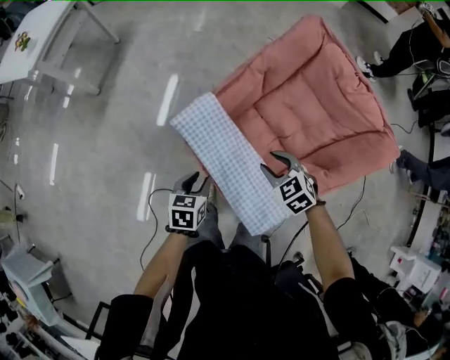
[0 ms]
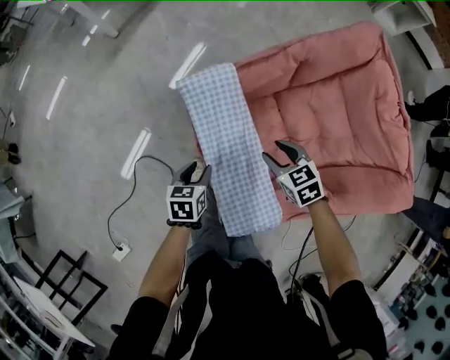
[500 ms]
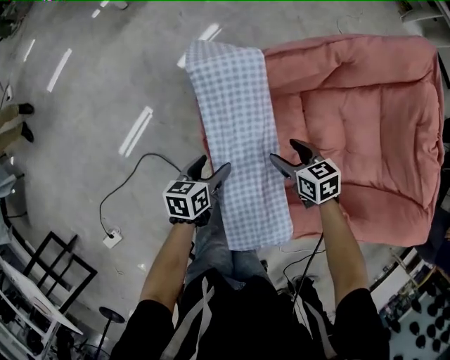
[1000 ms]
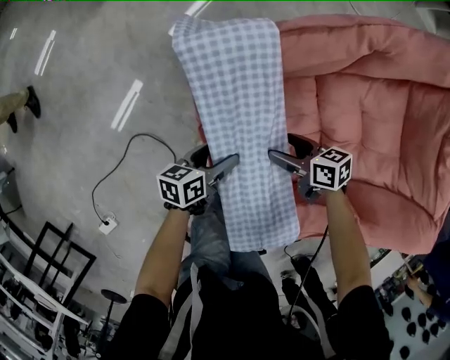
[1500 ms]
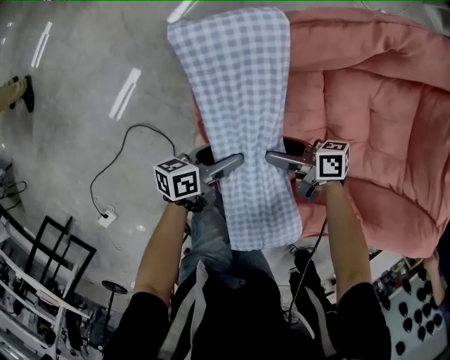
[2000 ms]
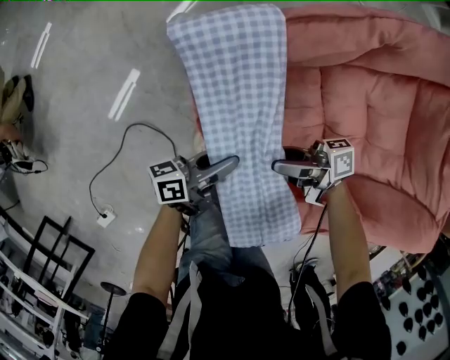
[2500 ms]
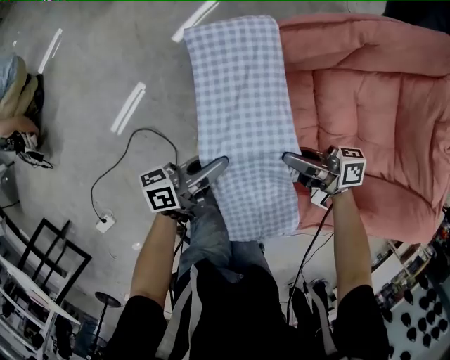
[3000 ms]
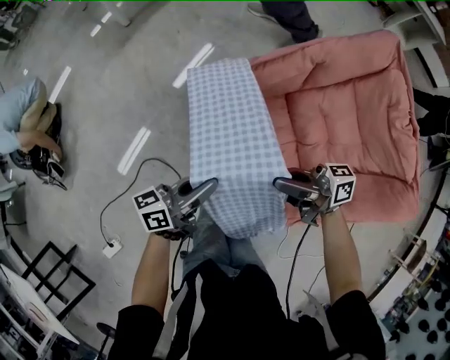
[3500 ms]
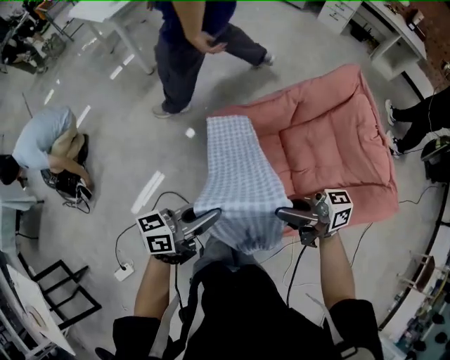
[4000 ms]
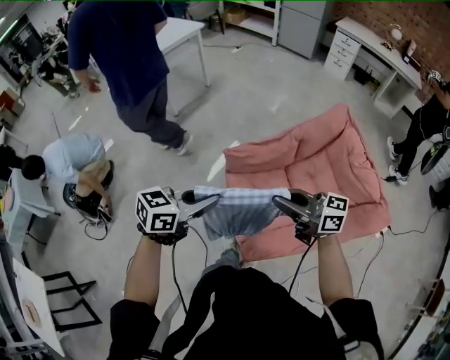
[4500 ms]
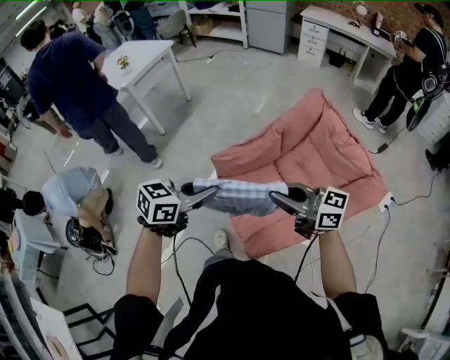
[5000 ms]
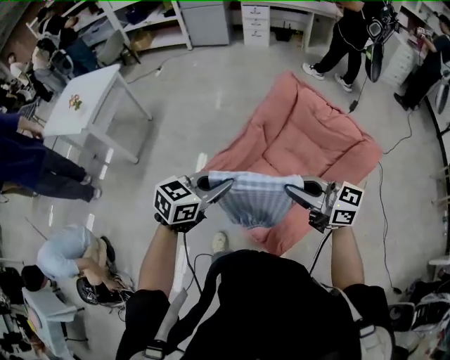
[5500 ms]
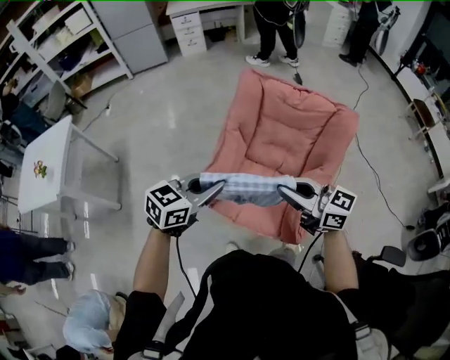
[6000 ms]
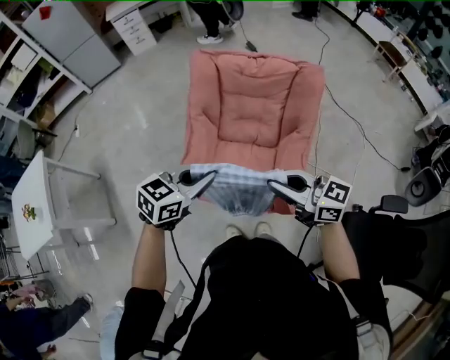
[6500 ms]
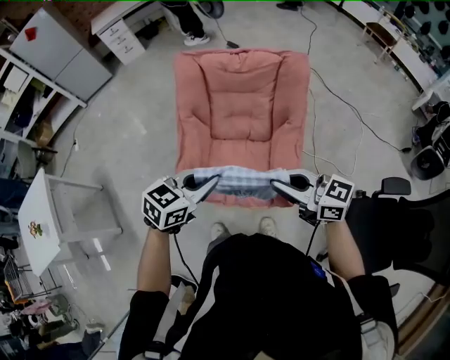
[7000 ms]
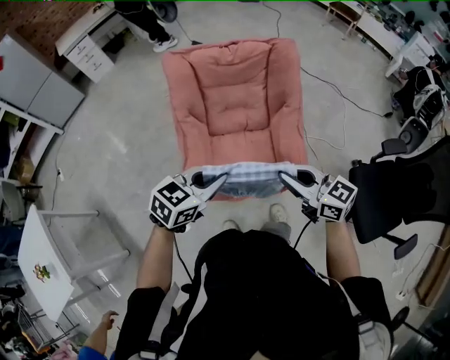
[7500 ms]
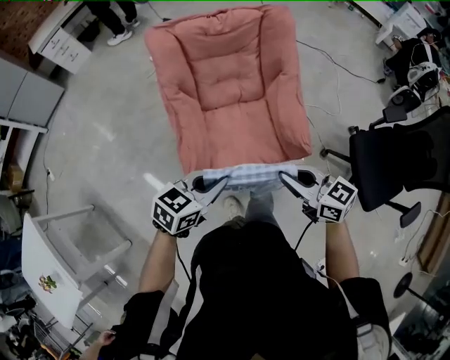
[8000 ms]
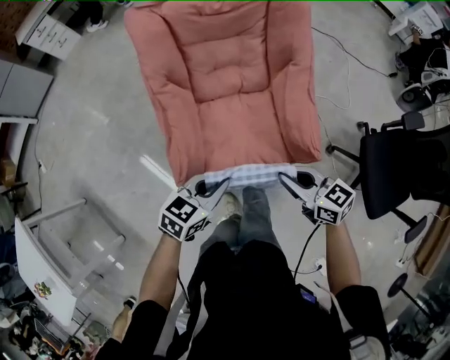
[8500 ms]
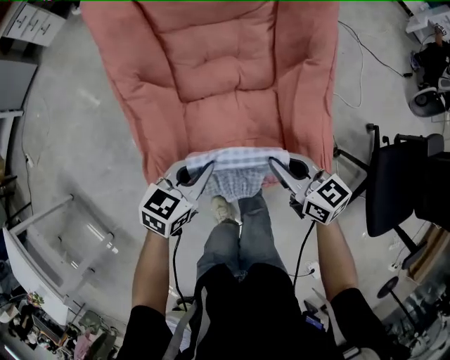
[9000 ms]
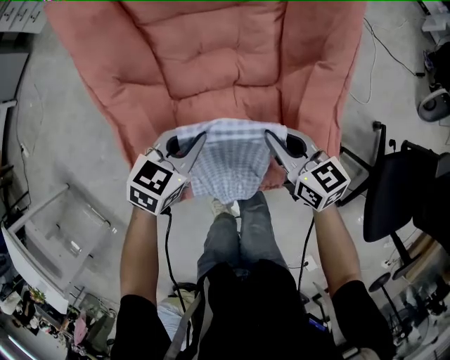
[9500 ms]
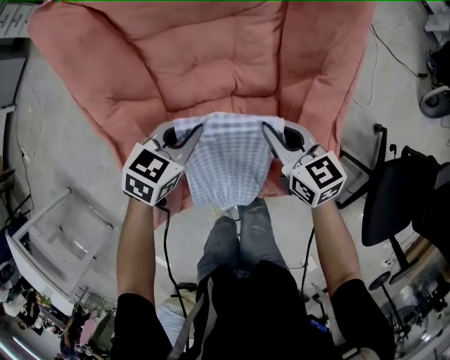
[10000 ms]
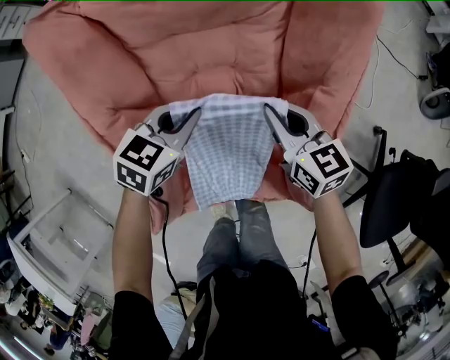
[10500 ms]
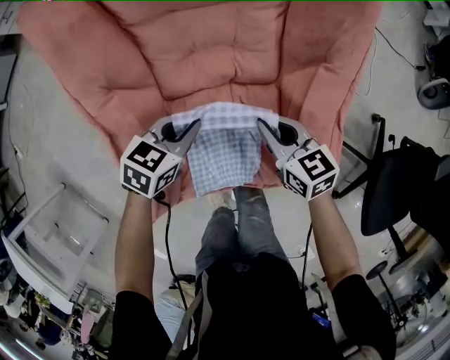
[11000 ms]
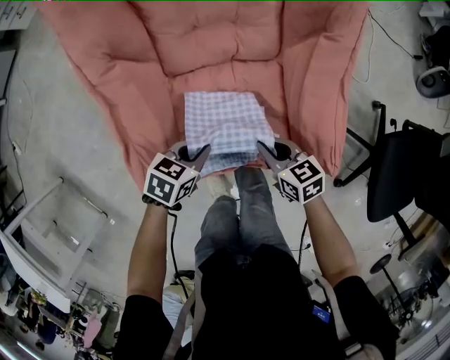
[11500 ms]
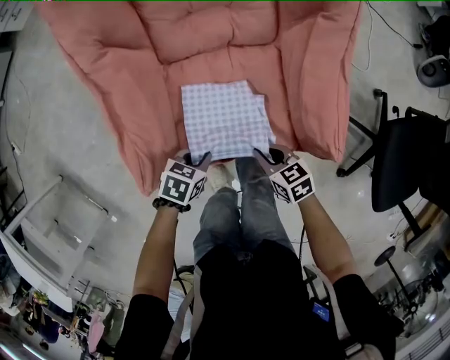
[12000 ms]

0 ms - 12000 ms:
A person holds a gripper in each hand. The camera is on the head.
0 ms - 2000 ms: The two grippers go some 25 cm downward. The right gripper turns by some 70 degrees, and opens up, while the left gripper rolls counterclockwise, seen from behind, by some 50 degrees, and opens up.
2000 ms - 4000 ms: The right gripper swings up and down, roughly 40 cm each way, with 2 reversals, points its fingers about 40 degrees further upward, and closes up; the left gripper swings up and down, approximately 40 cm each way, with 2 reversals, turns by about 30 degrees, and closes.
4000 ms - 6000 ms: The left gripper moves about 20 cm, and rotates about 60 degrees. Meanwhile the right gripper shifts roughly 10 cm upward, and rotates approximately 80 degrees.
6000 ms - 8000 ms: The right gripper moves about 20 cm, and rotates about 40 degrees. The left gripper moves downward, roughly 10 cm, and swivels some 40 degrees.
8000 ms - 10000 ms: Both grippers move forward and downward, roughly 40 cm.
10000 ms - 12000 ms: The left gripper moves roughly 30 cm, and changes its angle by some 30 degrees; the right gripper shifts by some 30 cm, and changes its angle by about 20 degrees.

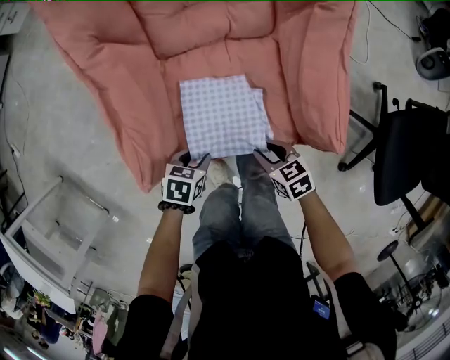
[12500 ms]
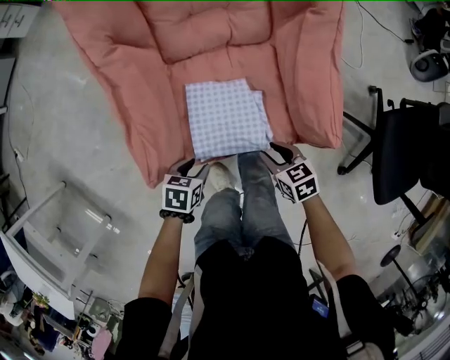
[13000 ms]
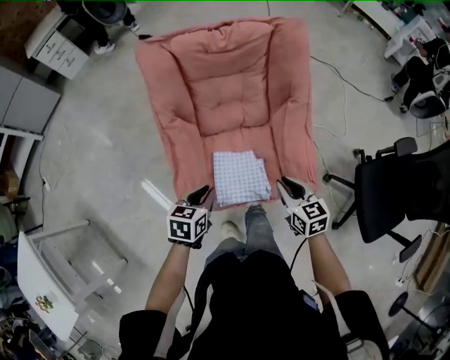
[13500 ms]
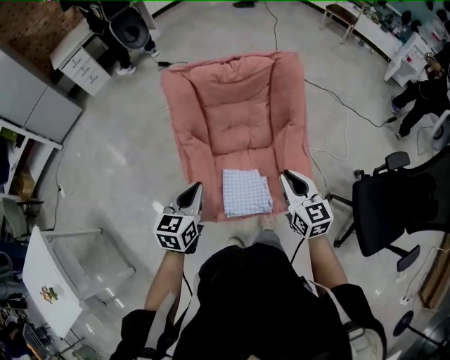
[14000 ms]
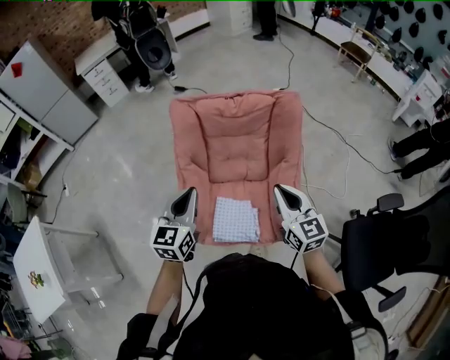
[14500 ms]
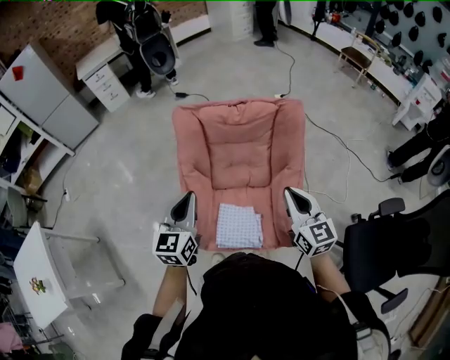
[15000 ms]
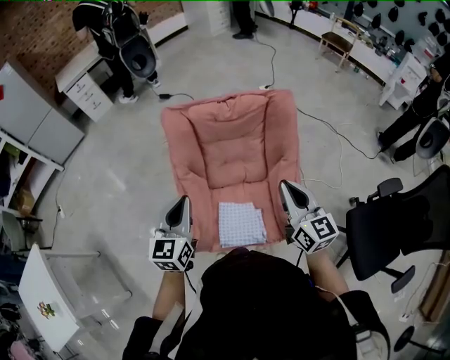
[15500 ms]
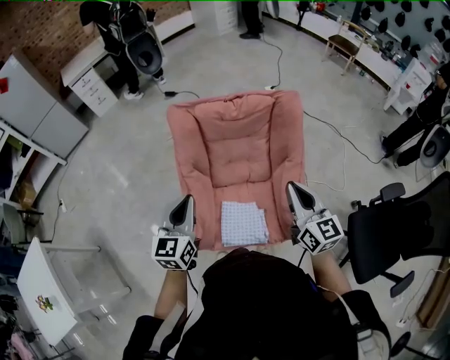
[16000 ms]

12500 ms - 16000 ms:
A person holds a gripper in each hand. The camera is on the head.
12500 ms - 14500 ms: Both grippers move upward, about 50 cm. The right gripper angles its fingers upward, by some 40 degrees; the left gripper tilts its fingers about 50 degrees upward, and closes.
14500 ms - 16000 ms: The left gripper shifts roughly 5 cm to the left.

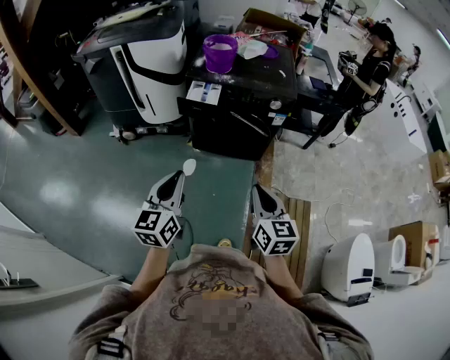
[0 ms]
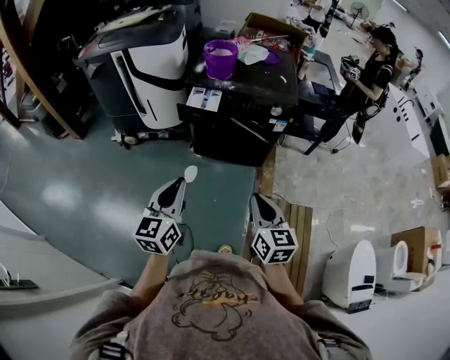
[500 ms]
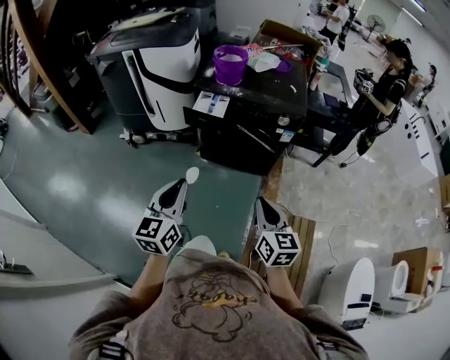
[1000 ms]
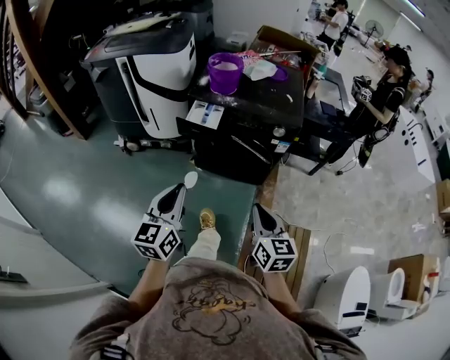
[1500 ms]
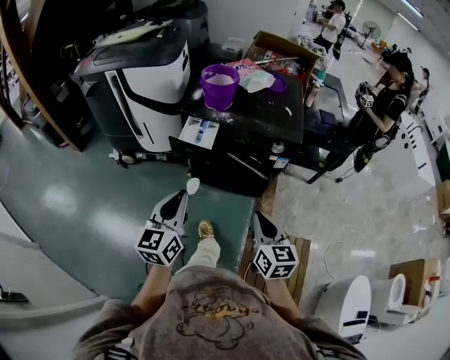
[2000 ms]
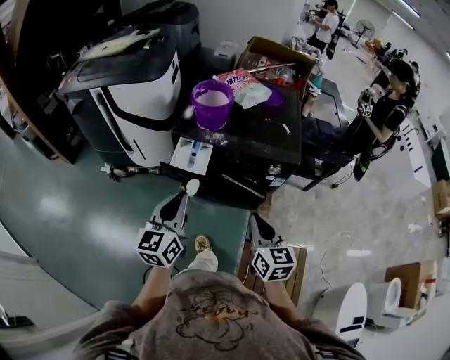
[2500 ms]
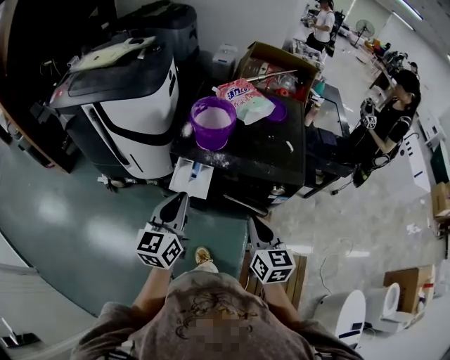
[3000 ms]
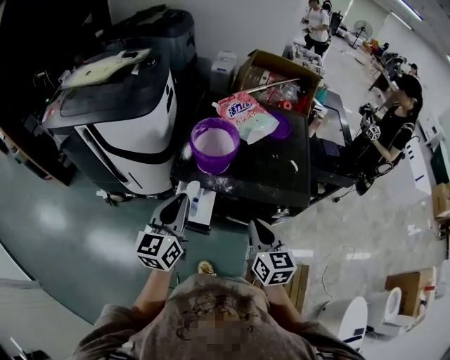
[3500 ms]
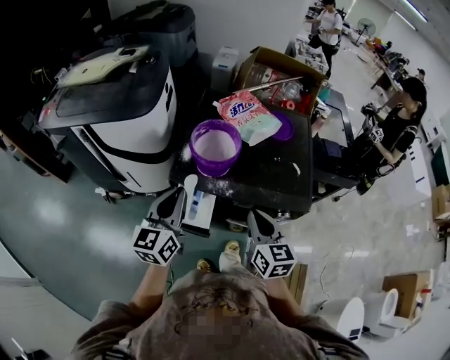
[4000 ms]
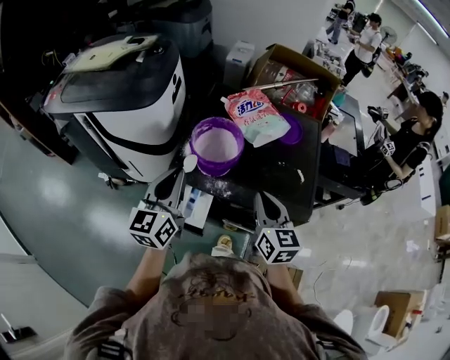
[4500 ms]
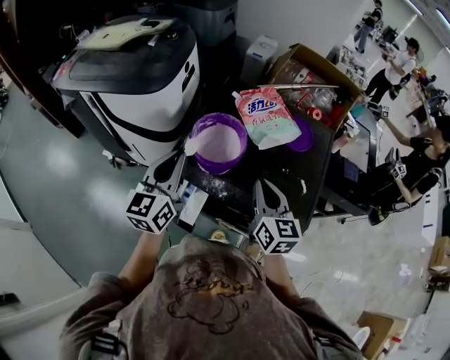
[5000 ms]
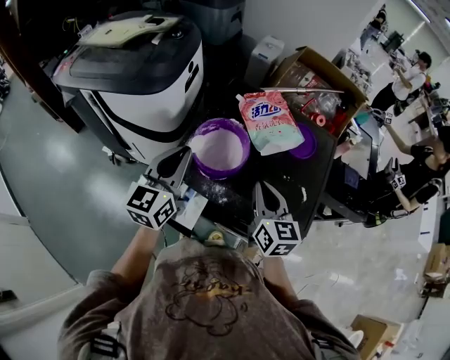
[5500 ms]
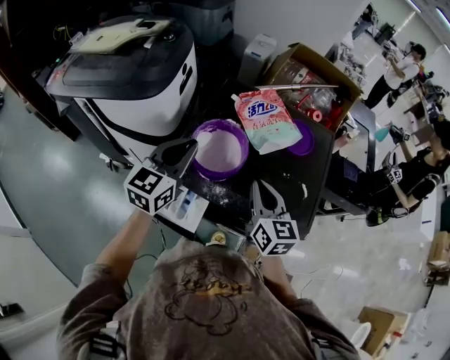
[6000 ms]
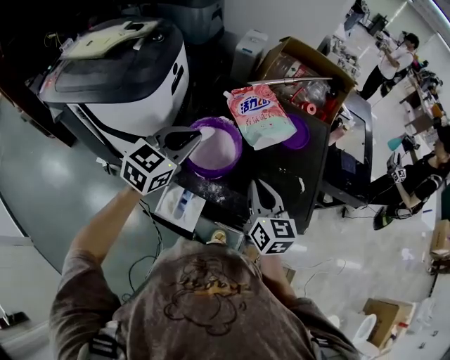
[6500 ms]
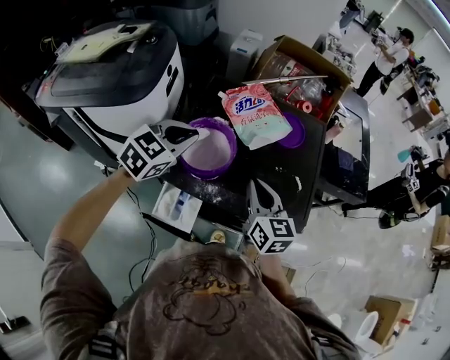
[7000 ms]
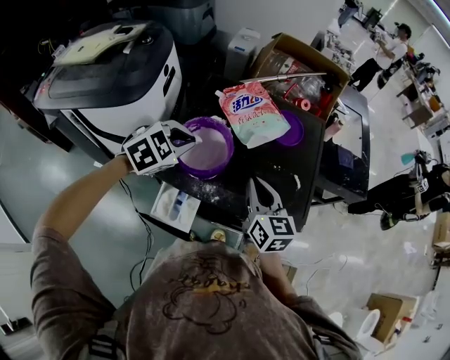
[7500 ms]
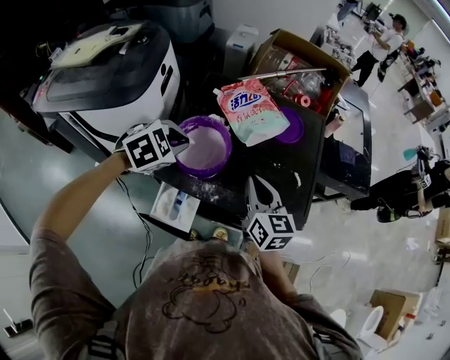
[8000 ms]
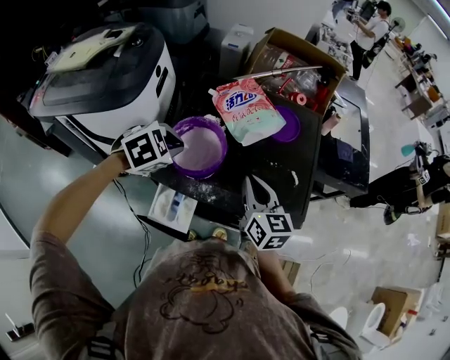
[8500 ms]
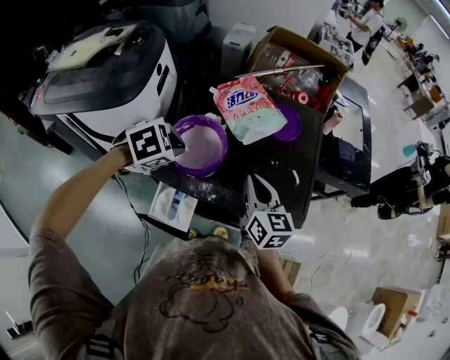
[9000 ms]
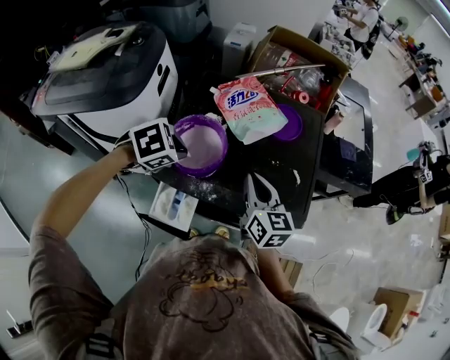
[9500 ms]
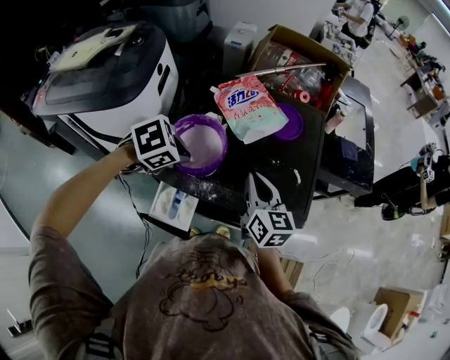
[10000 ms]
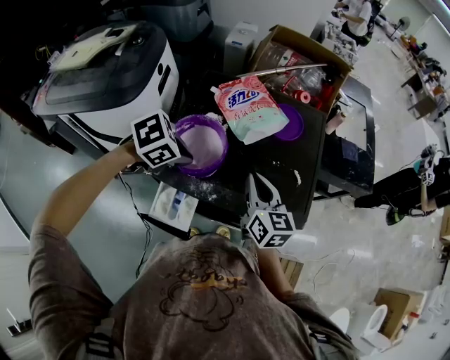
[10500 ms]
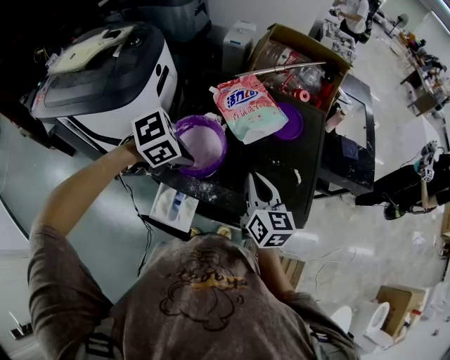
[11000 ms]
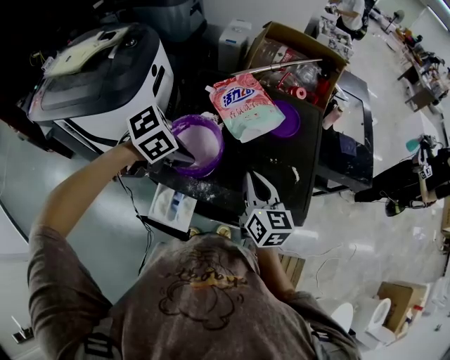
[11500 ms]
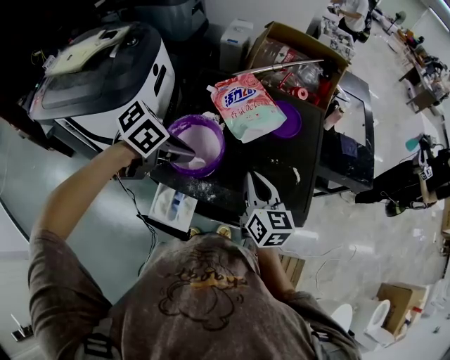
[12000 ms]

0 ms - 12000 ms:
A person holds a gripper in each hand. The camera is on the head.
0 ms - 2000 ms: Both grippers travel together forward, approximately 15 cm.
2000 ms - 4000 ms: The two grippers go approximately 35 cm forward.
4000 ms - 6000 ms: The grippers both shift forward by about 15 cm.
6000 ms - 8000 ms: The left gripper heads downward, covering some 5 cm, and tips its fingers downward by roughly 50 degrees.
8000 ms - 10000 ms: The left gripper swivels some 20 degrees.
10000 ms - 12000 ms: The left gripper rotates roughly 30 degrees.
